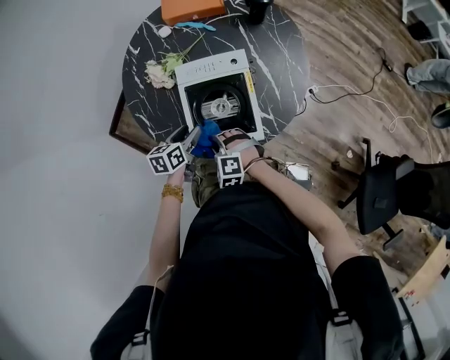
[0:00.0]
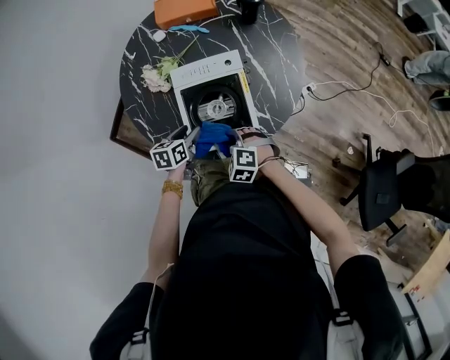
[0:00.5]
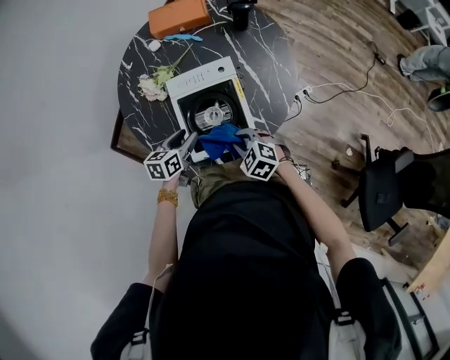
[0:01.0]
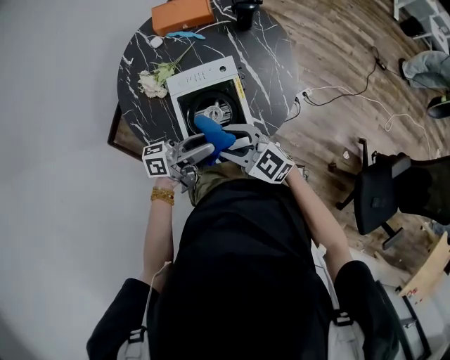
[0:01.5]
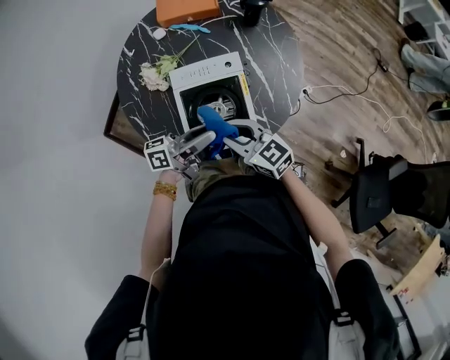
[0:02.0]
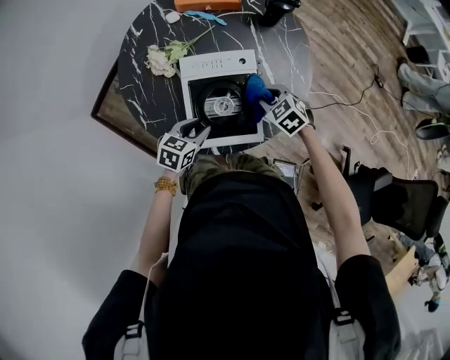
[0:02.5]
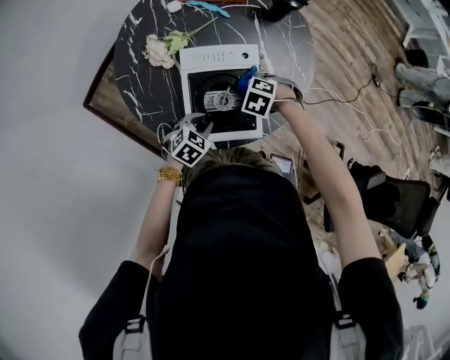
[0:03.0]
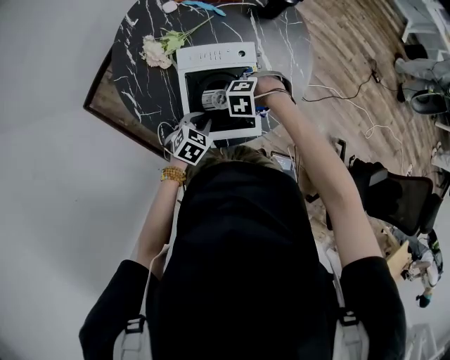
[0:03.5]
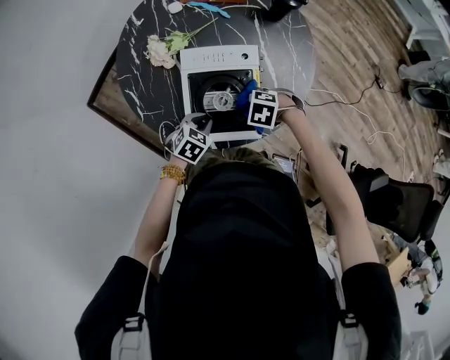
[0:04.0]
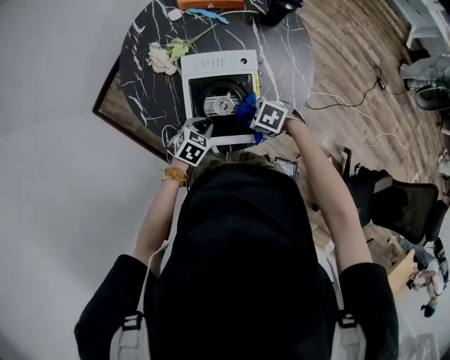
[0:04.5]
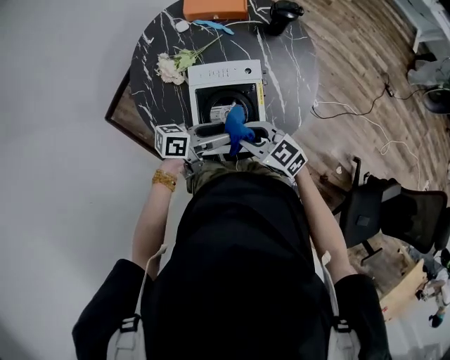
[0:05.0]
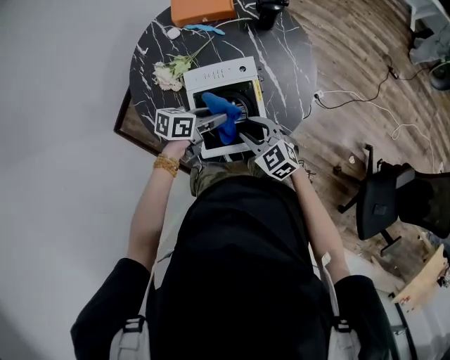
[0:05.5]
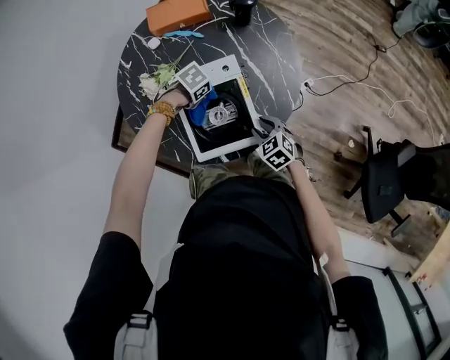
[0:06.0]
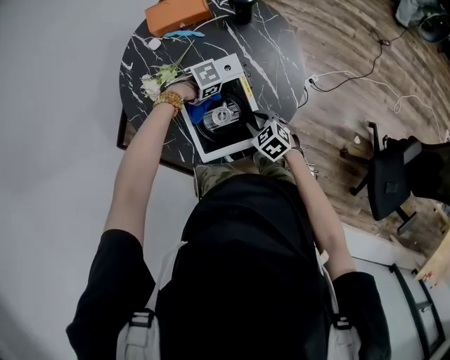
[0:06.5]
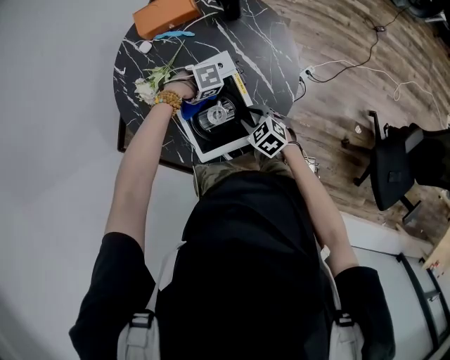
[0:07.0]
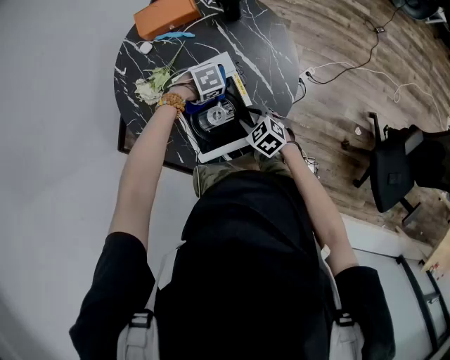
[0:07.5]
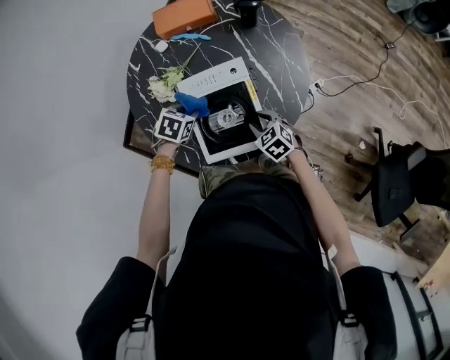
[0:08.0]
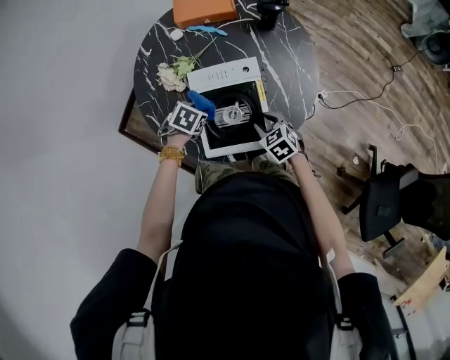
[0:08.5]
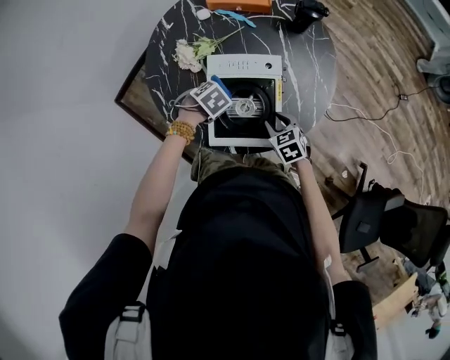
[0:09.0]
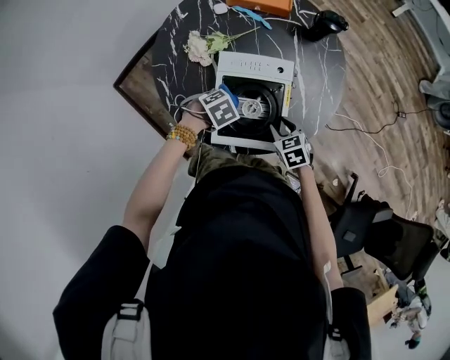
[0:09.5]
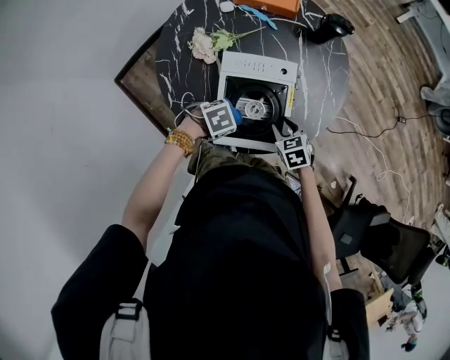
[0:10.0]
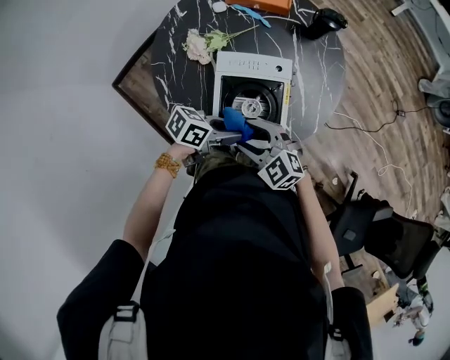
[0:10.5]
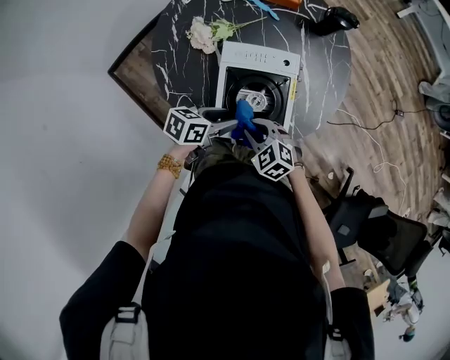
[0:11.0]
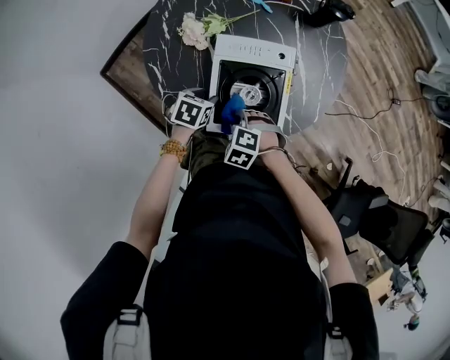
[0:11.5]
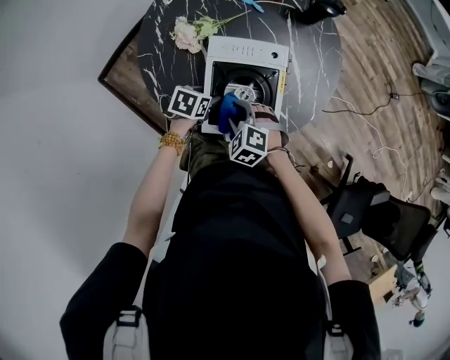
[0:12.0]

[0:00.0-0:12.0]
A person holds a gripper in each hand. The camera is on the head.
0:00.0 to 0:02.0: Both grippers travel together upward, about 15 cm. The right gripper tilts its fingers approximately 40 degrees upward, and opens and closes again; the left gripper angles its fingers upward, by approximately 50 degrees, and closes up.
0:02.0 to 0:04.0: The two grippers go roughly 15 cm downward. The right gripper points its fingers roughly 60 degrees further downward. The left gripper points its fingers approximately 70 degrees further downward.
0:04.0 to 0:06.0: The left gripper moves about 10 cm upward and comes back, changes its angle by approximately 40 degrees, and opens, then closes once more; the right gripper reaches about 15 cm upward, then returns, and turns by about 60 degrees.
0:06.0 to 0:08.0: The left gripper changes place by approximately 10 cm, and rotates about 30 degrees.
0:08.0 to 0:10.0: The left gripper ends up about 15 cm from where it was, and changes its angle by some 20 degrees.
0:10.0 to 0:12.0: The left gripper goes upward and returns, approximately 10 cm each way, turns by some 50 degrees, and opens up, while the right gripper moves approximately 15 cm upward and comes back, and rotates approximately 40 degrees.

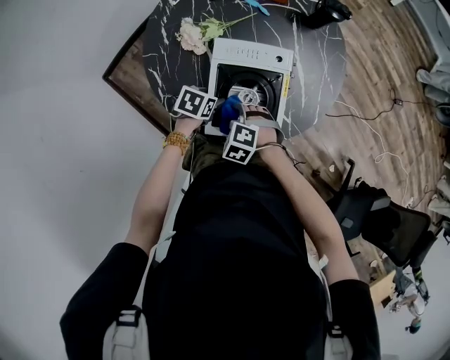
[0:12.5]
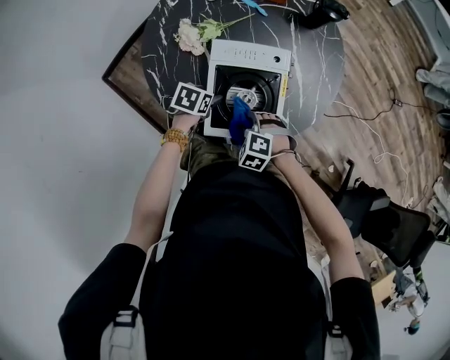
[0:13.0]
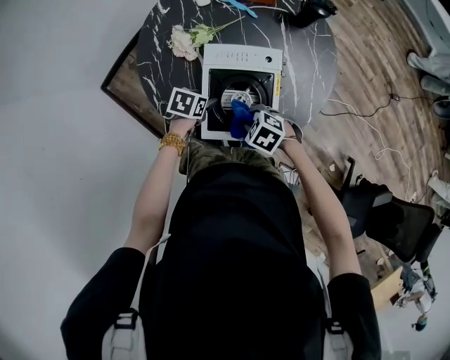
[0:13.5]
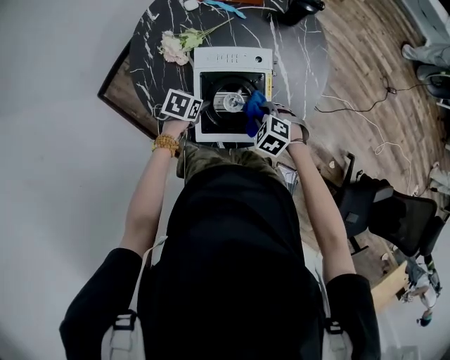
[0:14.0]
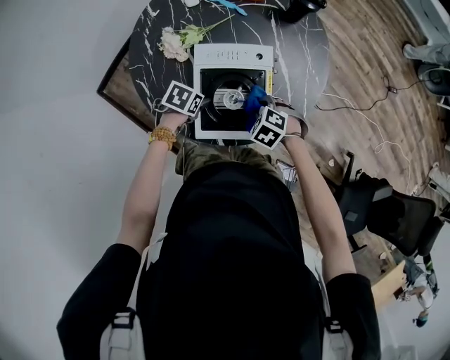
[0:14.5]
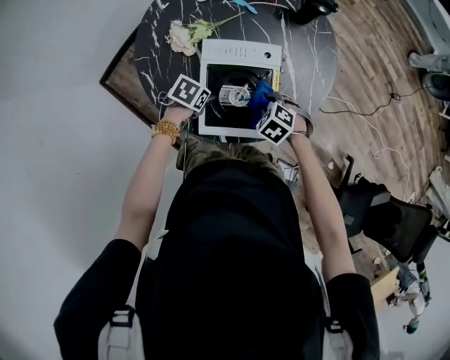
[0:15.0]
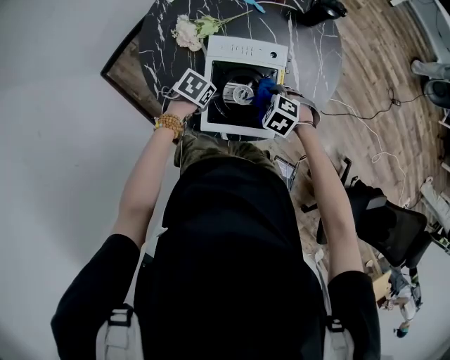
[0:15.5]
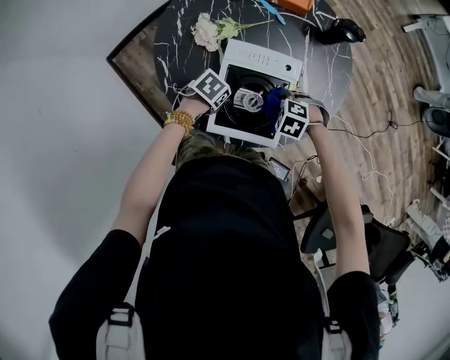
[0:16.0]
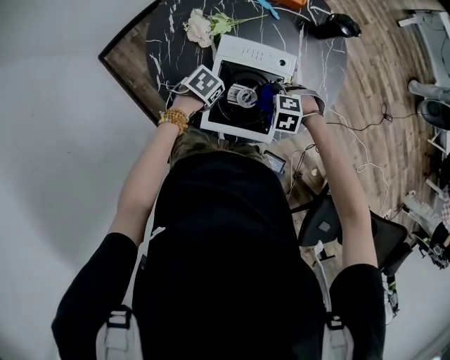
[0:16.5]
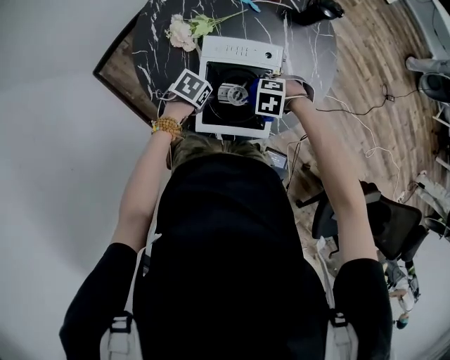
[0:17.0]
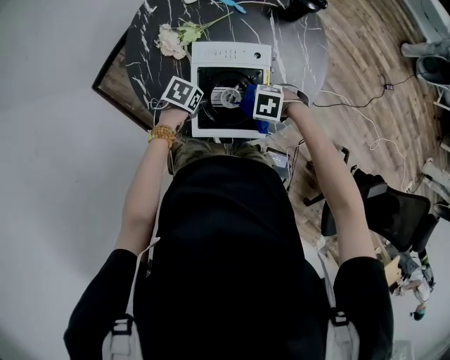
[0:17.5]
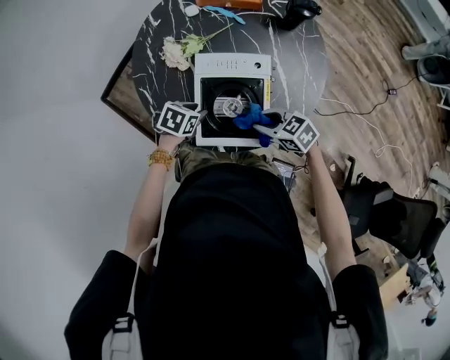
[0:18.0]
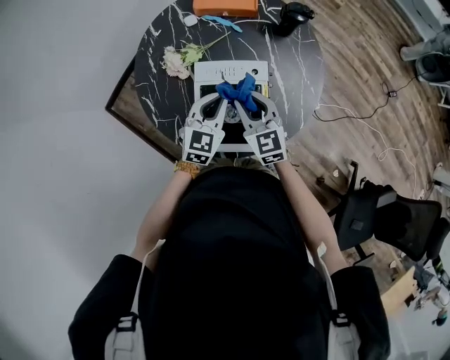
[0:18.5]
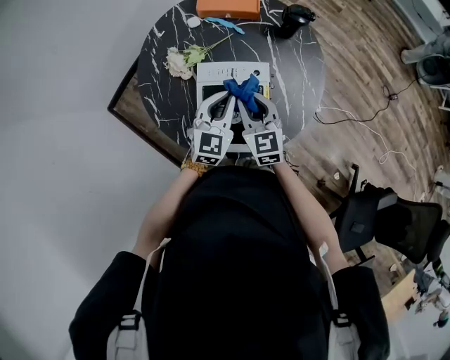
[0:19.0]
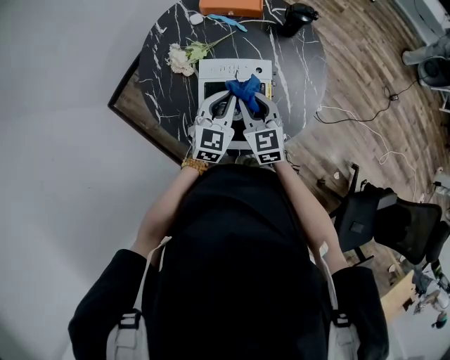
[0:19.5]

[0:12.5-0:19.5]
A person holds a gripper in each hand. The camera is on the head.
0:12.5 to 0:14.5: The right gripper shifts by approximately 15 cm.
0:14.5 to 0:16.0: The right gripper swivels roughly 20 degrees.
0:16.0 to 0:17.5: There are only small adjustments of the grippers.
0:17.5 to 0:19.5: The grippers both shift upward by roughly 15 cm. The left gripper points its fingers about 40 degrees further upward, and closes its fingers; the right gripper angles its fingers upward, by some 50 degrees.

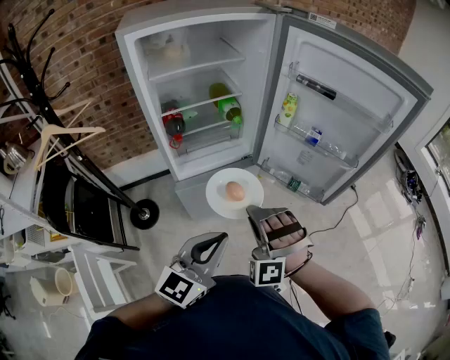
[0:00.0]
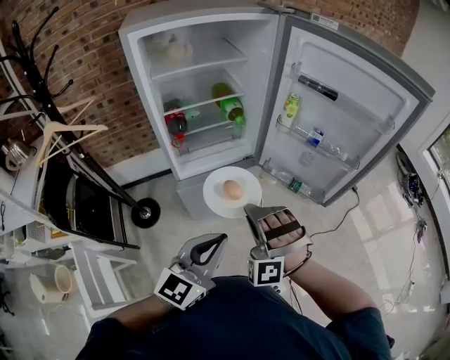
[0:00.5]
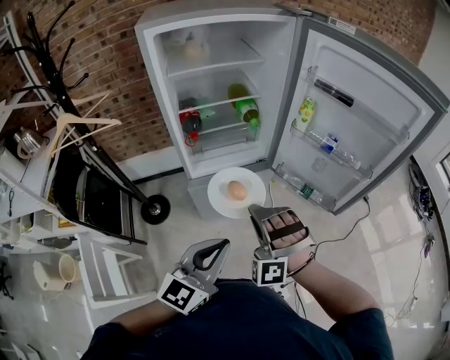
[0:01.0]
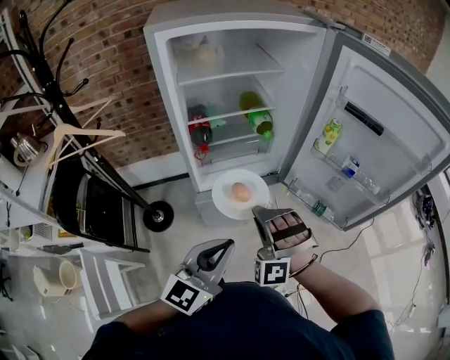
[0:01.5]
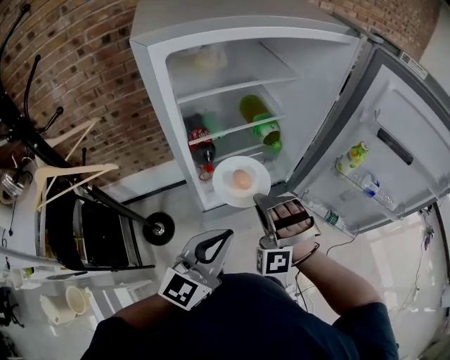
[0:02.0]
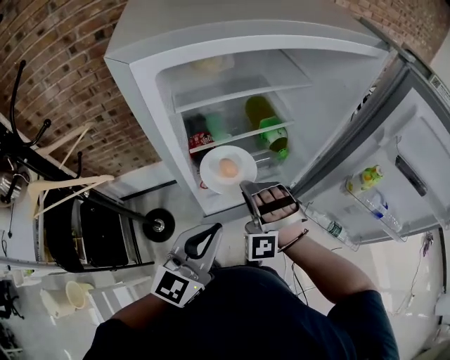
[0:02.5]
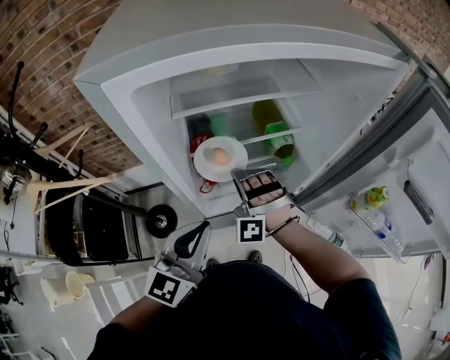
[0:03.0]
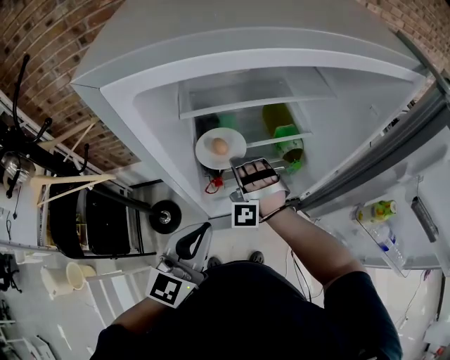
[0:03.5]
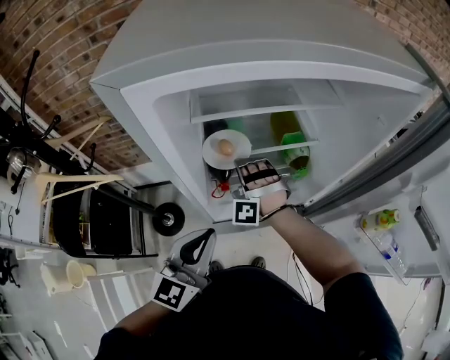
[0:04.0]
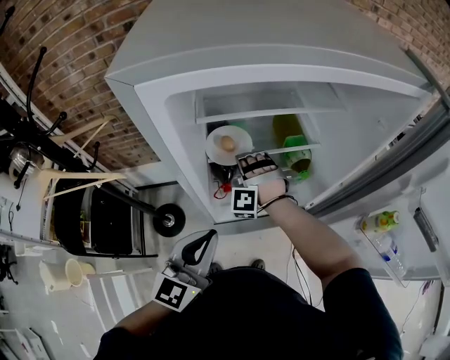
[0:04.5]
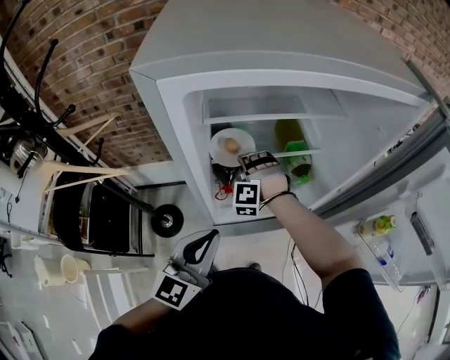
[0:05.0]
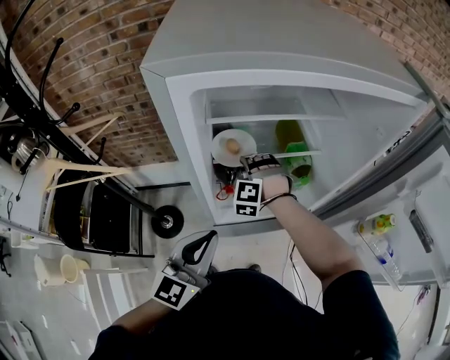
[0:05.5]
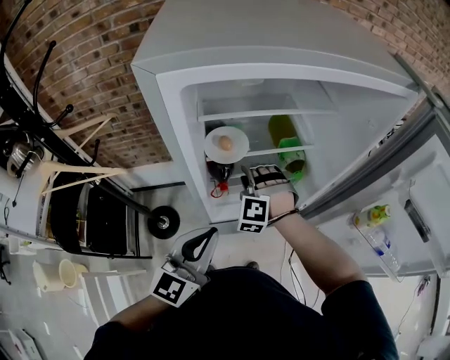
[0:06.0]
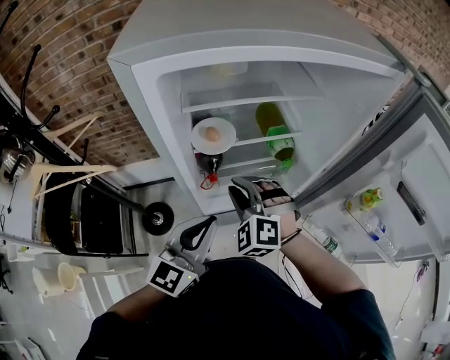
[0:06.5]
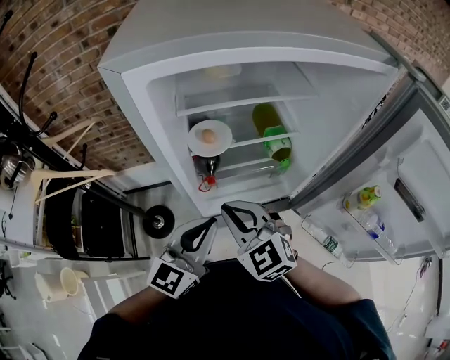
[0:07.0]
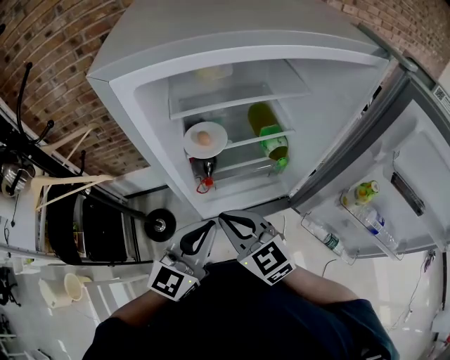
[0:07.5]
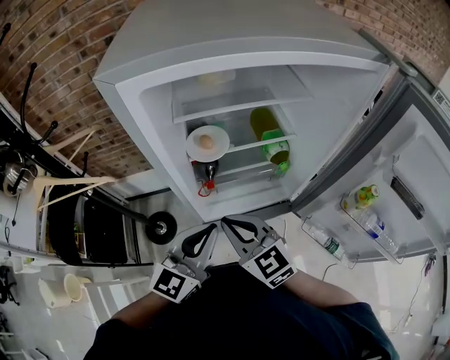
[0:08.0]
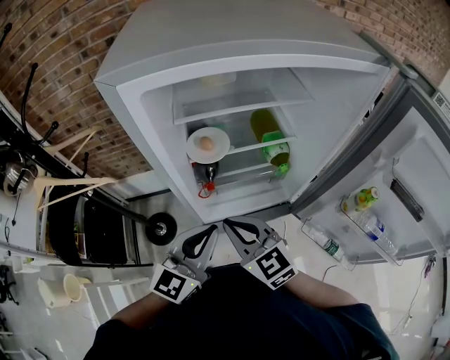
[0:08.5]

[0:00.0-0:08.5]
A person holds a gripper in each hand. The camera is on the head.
0:00.0 to 0:02.0: The left gripper moves roughly 25 cm.
0:02.0 to 0:04.0: The left gripper changes place by about 15 cm.
